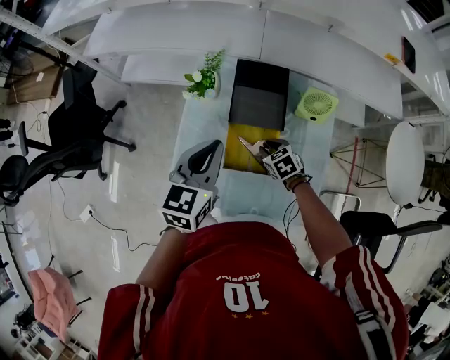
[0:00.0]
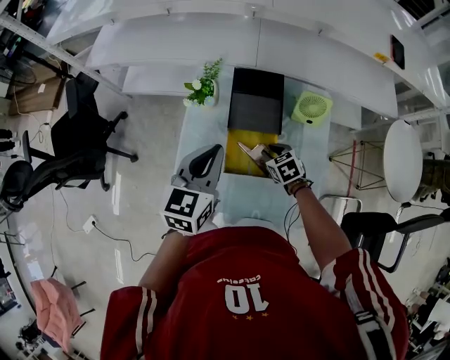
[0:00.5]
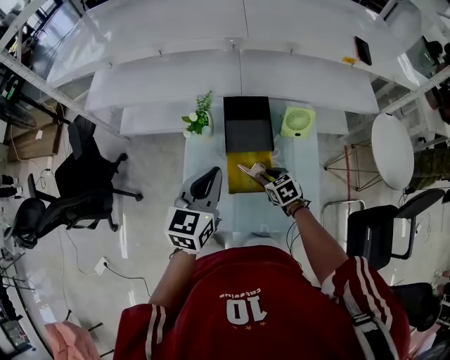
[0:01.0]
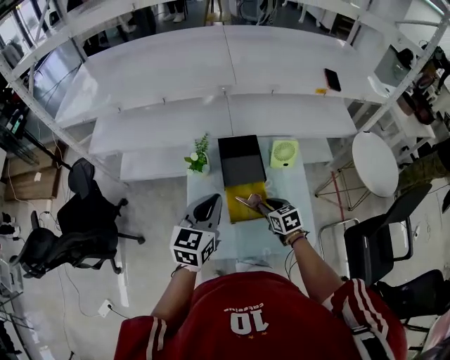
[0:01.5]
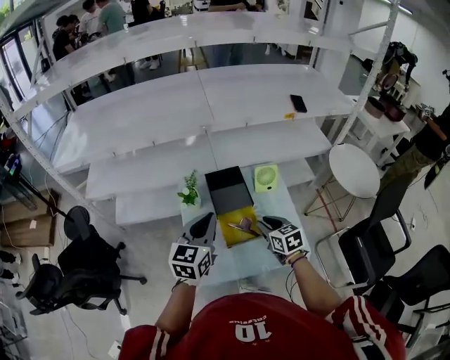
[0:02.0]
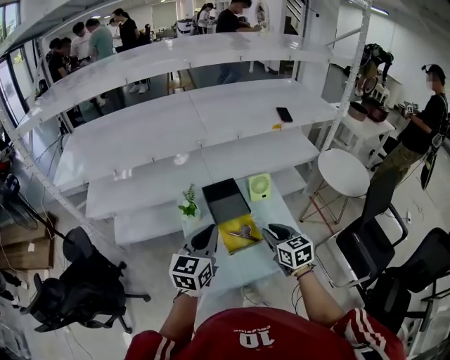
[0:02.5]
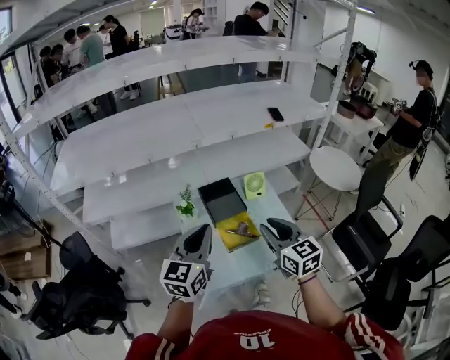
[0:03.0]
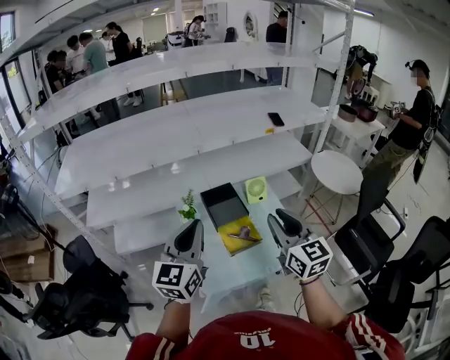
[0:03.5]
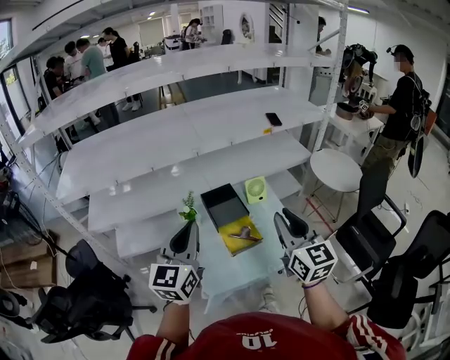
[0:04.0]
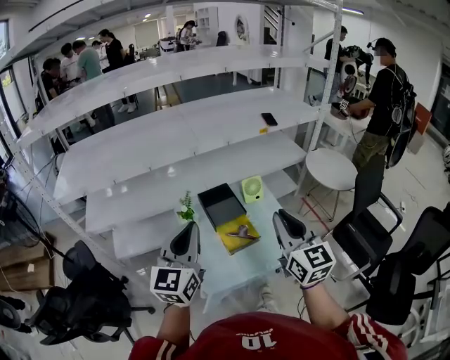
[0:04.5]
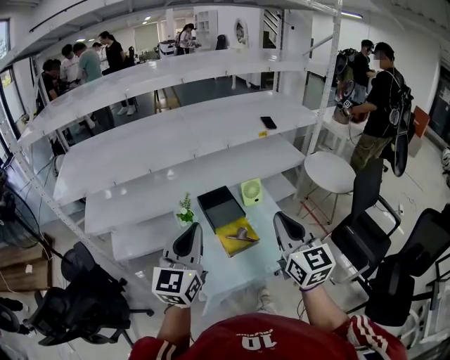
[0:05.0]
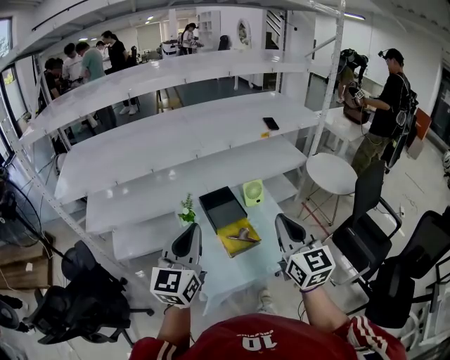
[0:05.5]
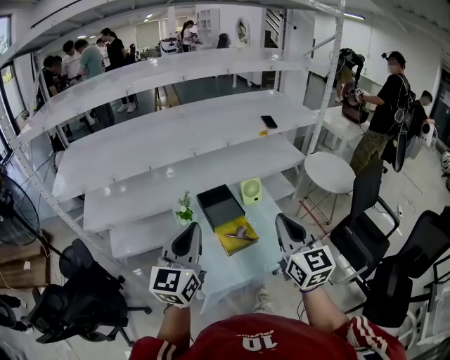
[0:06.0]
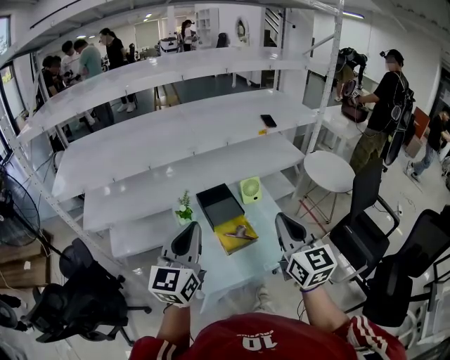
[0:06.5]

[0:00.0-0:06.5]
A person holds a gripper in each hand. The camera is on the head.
0:00.0 to 0:02.0: The right gripper is displaced upward and backward by some 25 cm, and swivels about 40 degrees. Meanwhile the left gripper heads upward and backward, covering about 15 cm, and rotates about 20 degrees.
0:02.0 to 0:04.5: The right gripper travels upward and backward by some 35 cm, and points its fingers some 40 degrees further upward, while the left gripper is displaced upward, backward and to the left by roughly 20 cm.
0:04.5 to 0:06.5: Both grippers stay put.

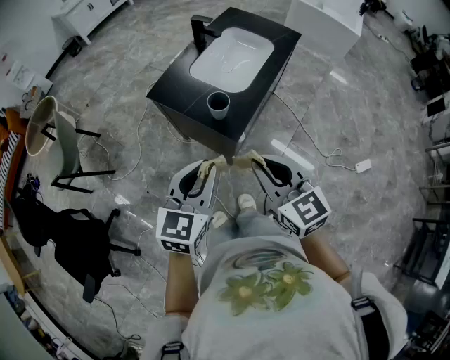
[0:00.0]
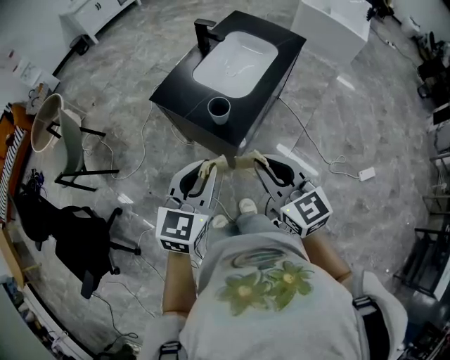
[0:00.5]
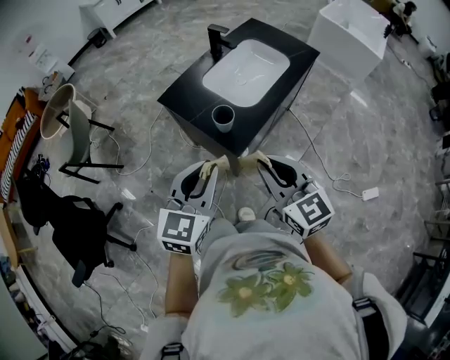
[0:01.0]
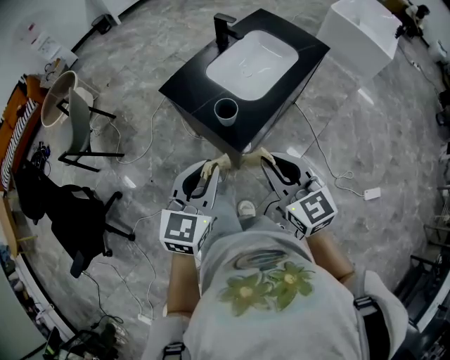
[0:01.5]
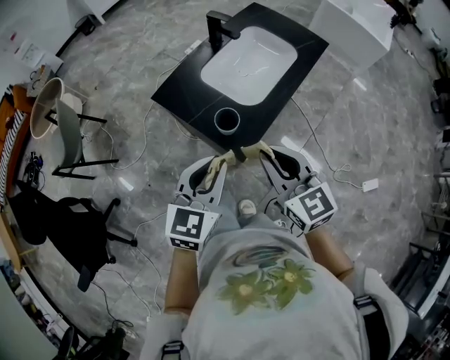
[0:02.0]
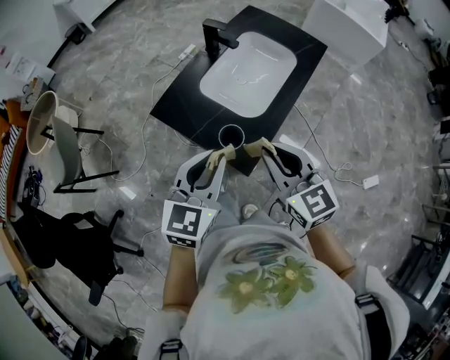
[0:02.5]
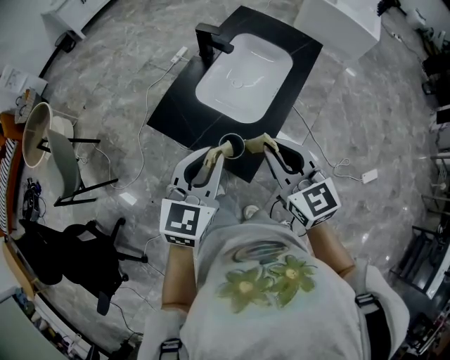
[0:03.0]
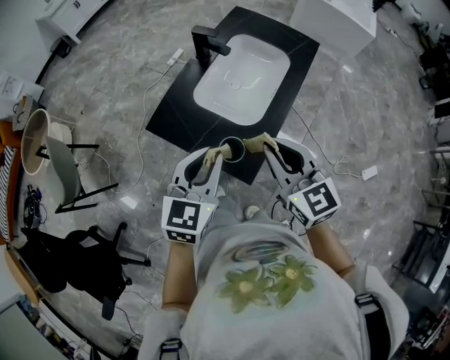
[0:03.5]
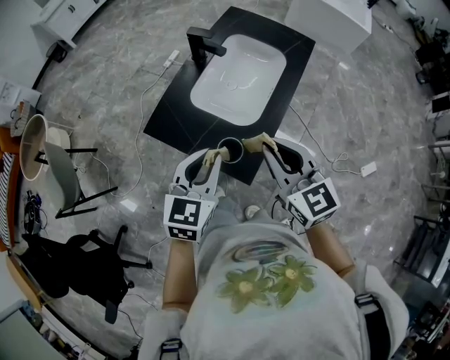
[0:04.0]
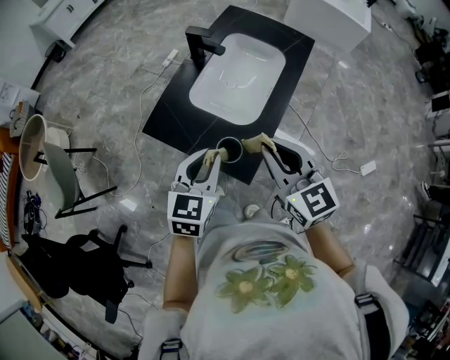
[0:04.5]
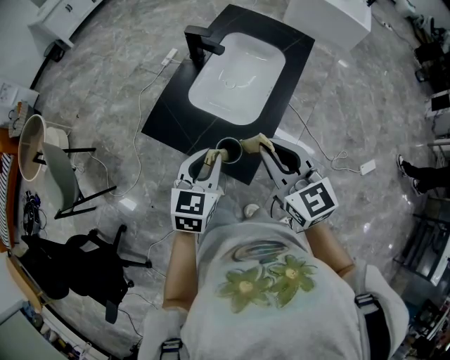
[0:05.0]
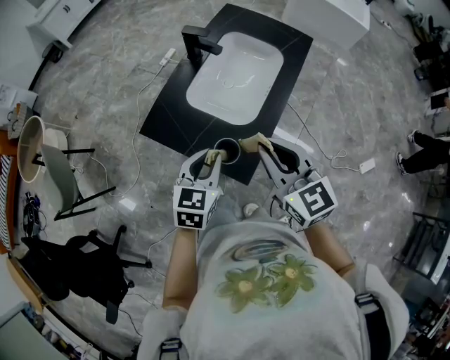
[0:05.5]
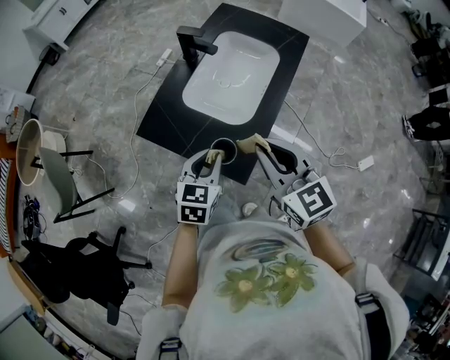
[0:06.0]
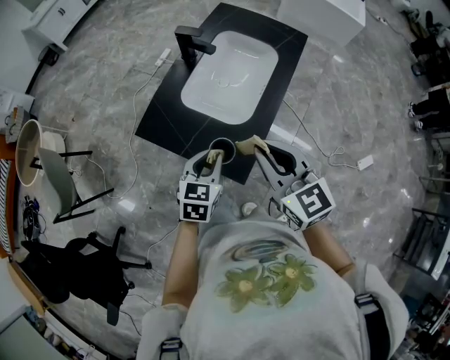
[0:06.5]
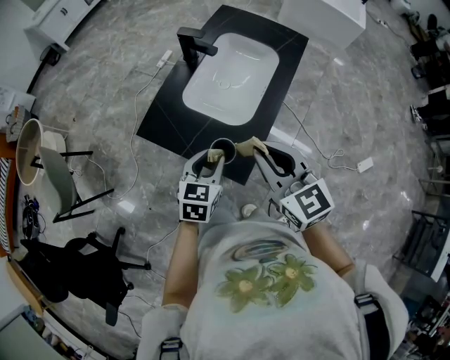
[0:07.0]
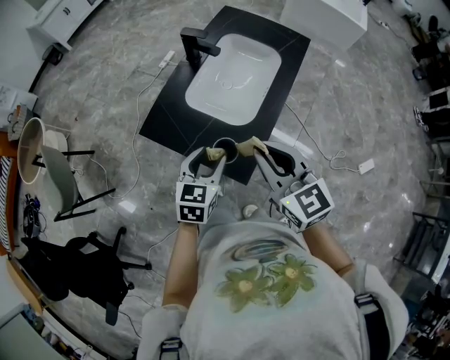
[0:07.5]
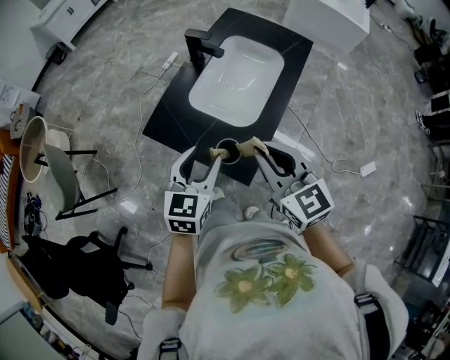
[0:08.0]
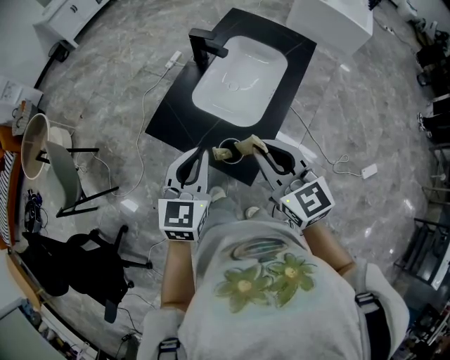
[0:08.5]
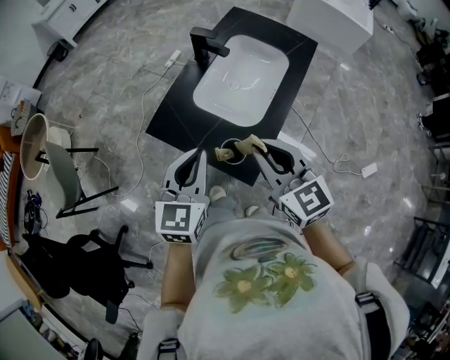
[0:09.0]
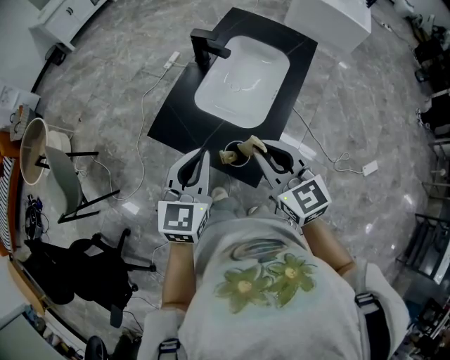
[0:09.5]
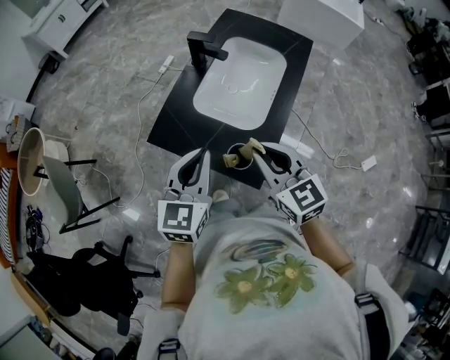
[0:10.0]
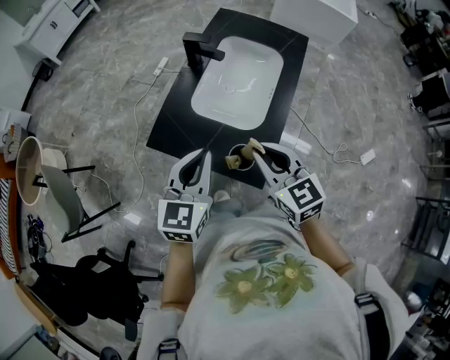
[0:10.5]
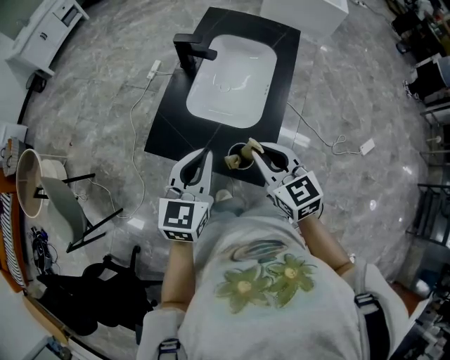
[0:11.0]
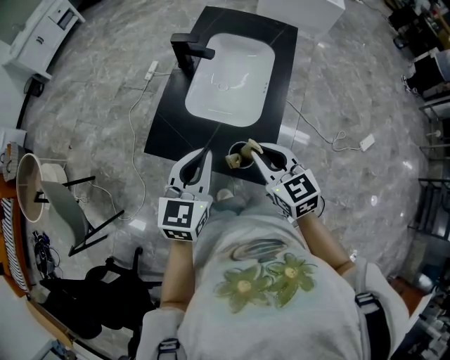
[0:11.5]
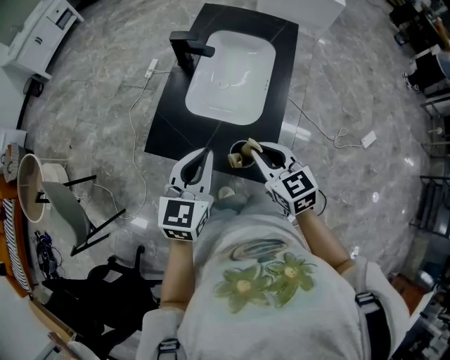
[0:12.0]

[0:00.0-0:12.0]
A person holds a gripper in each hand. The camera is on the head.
0:00.0 to 0:02.0: Both grippers move forward, roughly 15 cm.
0:02.0 to 0:04.0: Both grippers move forward, about 15 cm.
0:04.0 to 0:06.0: The left gripper goes some 10 cm downward.
0:06.0 to 0:08.0: The left gripper heads upward, covering approximately 5 cm, and opens up.
0:08.0 to 0:10.0: The left gripper changes place by about 5 cm, and closes. The right gripper shifts by about 5 cm.
0:10.0 to 0:12.0: The right gripper goes about 10 cm downward.

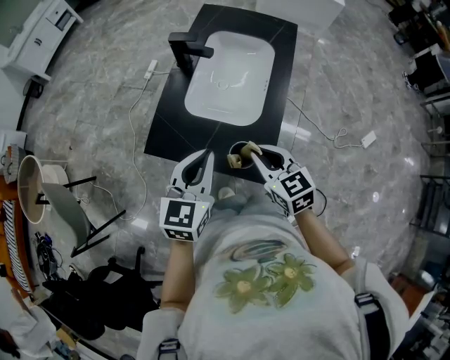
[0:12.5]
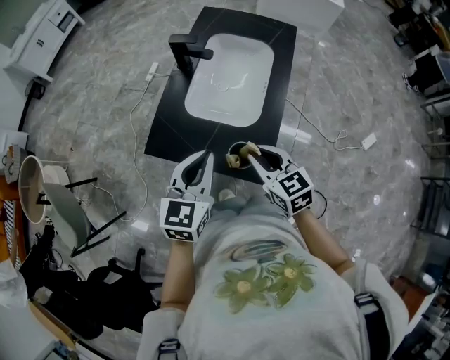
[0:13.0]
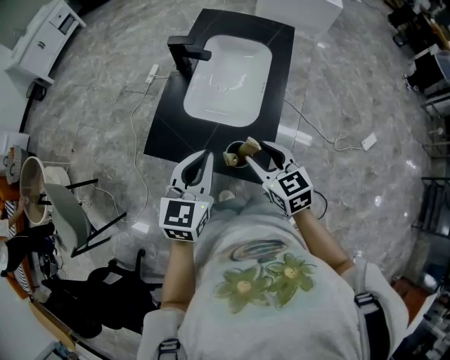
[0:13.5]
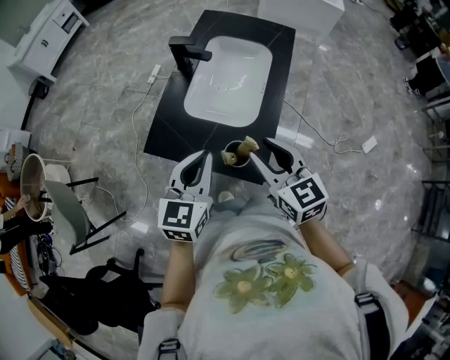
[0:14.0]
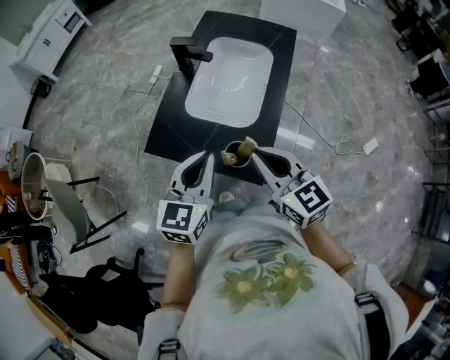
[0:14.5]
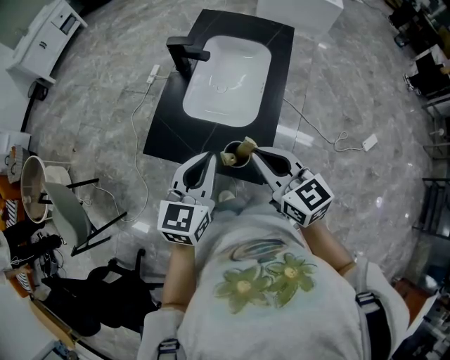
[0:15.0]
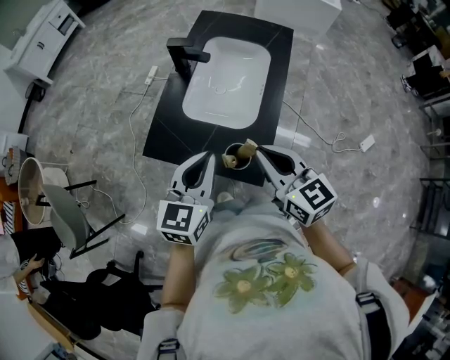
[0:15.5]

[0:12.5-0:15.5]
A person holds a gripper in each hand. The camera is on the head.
0:12.5 to 0:14.0: The right gripper heads upward, covering about 10 cm, and opens up.
0:14.0 to 0:15.5: The right gripper closes.

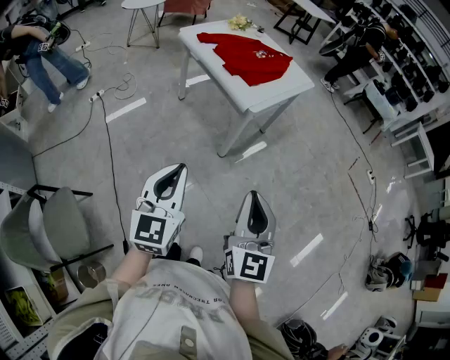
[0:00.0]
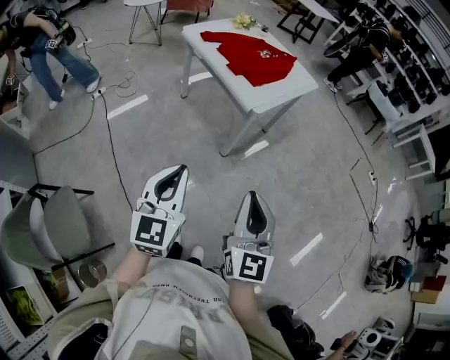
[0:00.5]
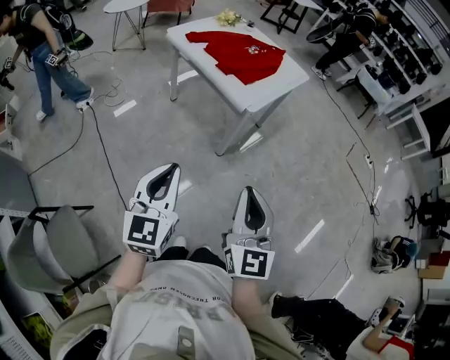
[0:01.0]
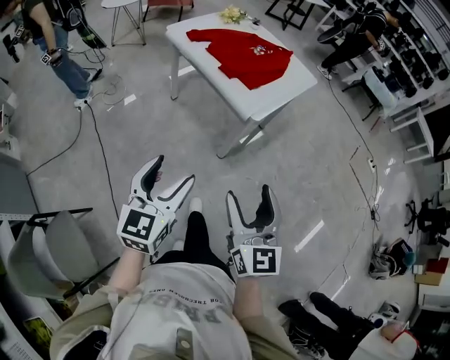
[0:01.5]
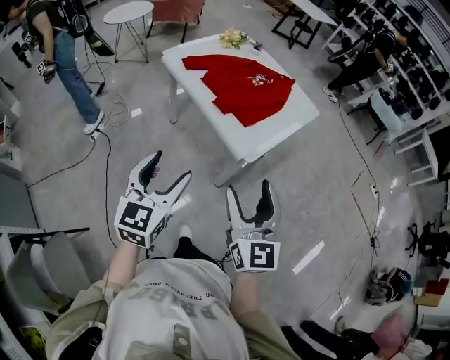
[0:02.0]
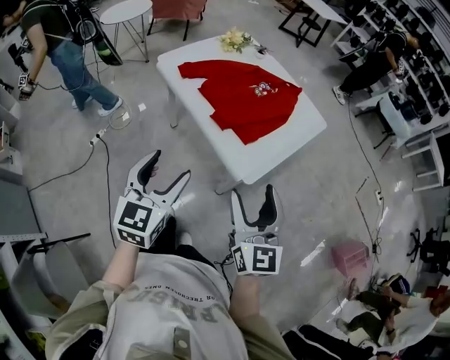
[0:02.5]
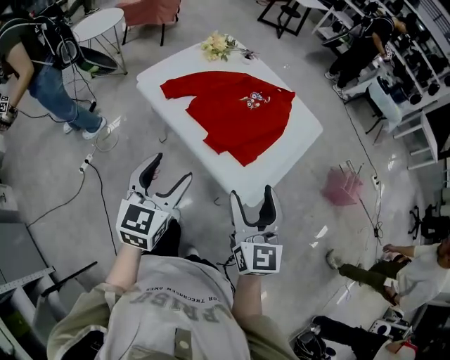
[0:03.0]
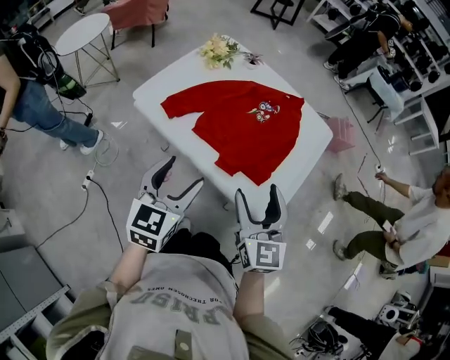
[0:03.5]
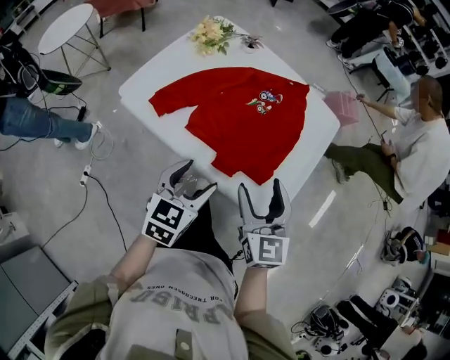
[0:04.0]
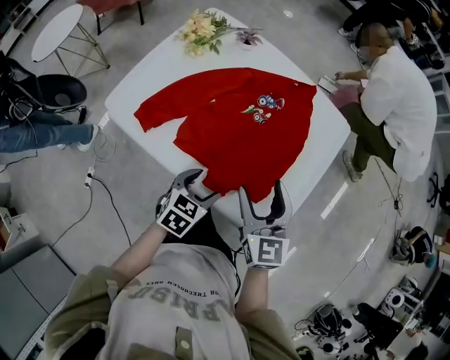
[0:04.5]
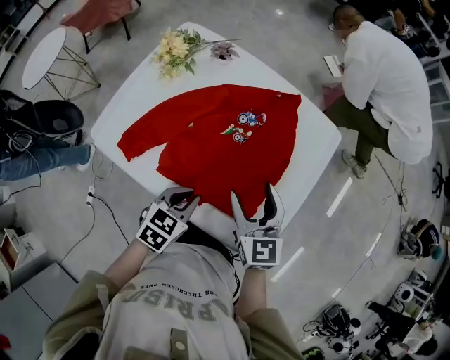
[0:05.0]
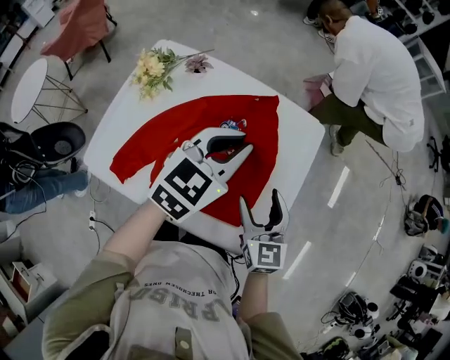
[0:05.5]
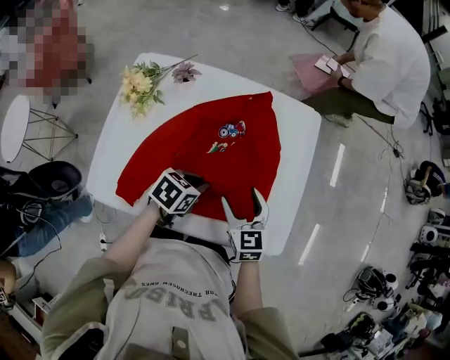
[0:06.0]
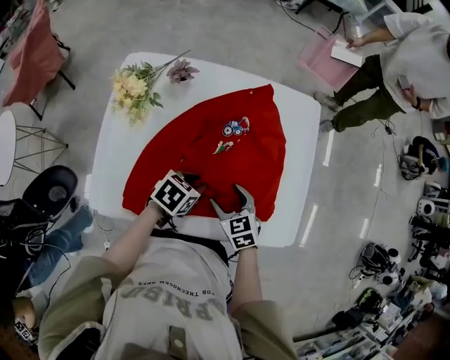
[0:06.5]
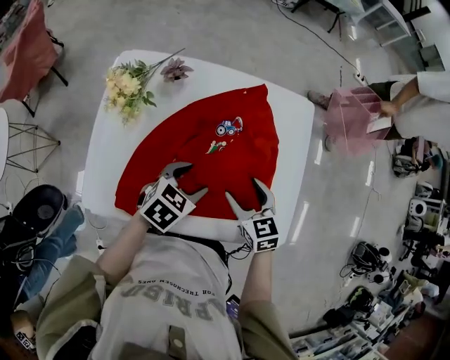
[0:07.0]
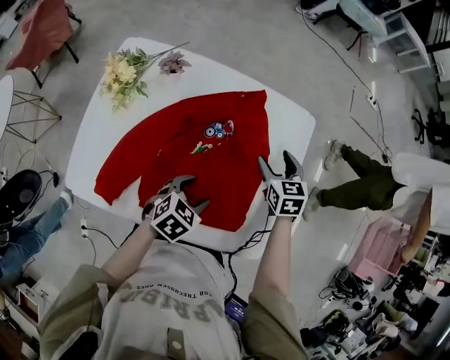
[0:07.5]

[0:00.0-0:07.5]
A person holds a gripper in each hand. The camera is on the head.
0:00.0 to 0:02.0: Both grippers travel together forward, about 30 cm. The right gripper opens its fingers. The left gripper opens its fingers.
0:02.0 to 0:04.0: Both grippers move forward, roughly 35 cm. The right gripper changes its angle by roughly 20 degrees, while the left gripper rotates approximately 30 degrees.
0:04.0 to 0:05.5: The right gripper moves forward, roughly 15 cm. Meanwhile the left gripper is displaced forward by roughly 30 cm, swivels approximately 30 degrees, and closes its fingers.
0:05.5 to 0:07.5: The right gripper goes about 20 cm forward and downward, and rotates approximately 20 degrees; the left gripper moves up and down over roughly 25 cm, changing direction 2 times, angles its fingers downward, by about 30 degrees, and opens.
